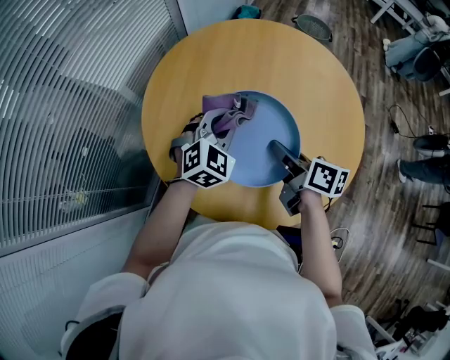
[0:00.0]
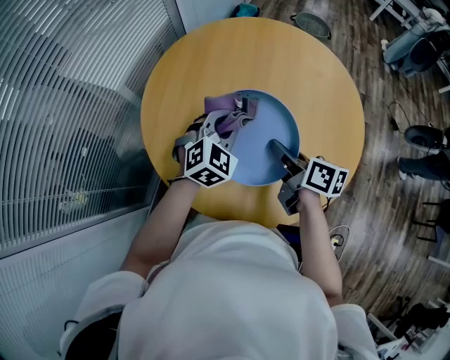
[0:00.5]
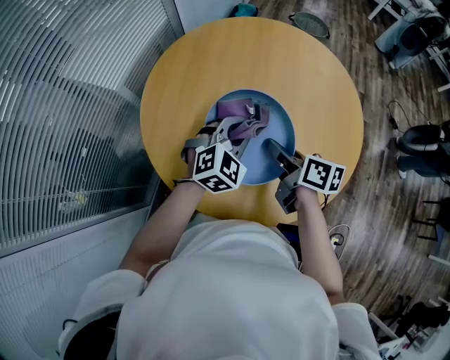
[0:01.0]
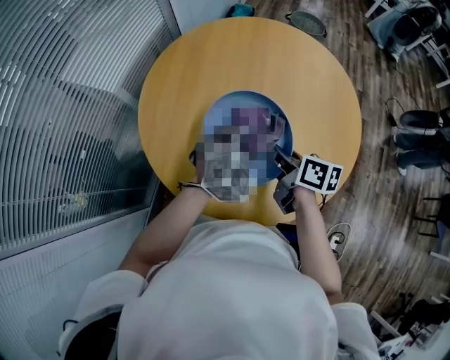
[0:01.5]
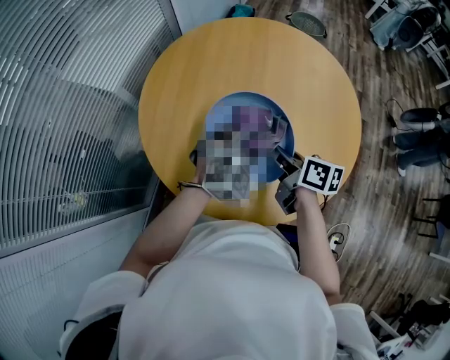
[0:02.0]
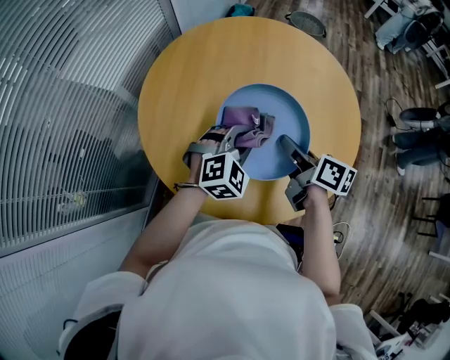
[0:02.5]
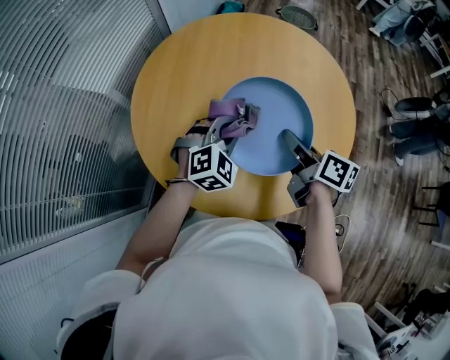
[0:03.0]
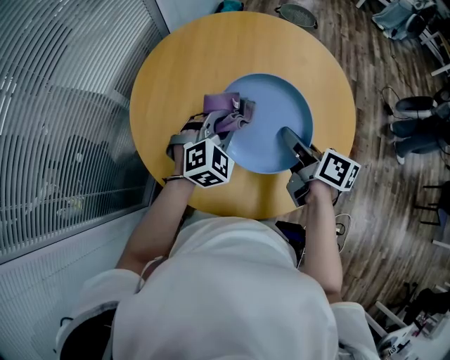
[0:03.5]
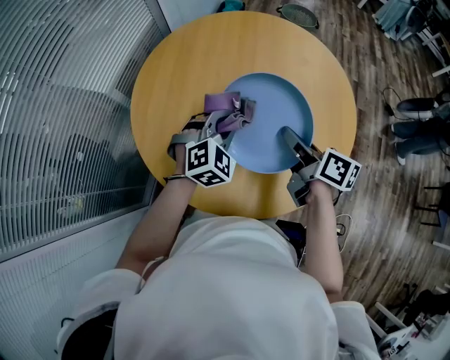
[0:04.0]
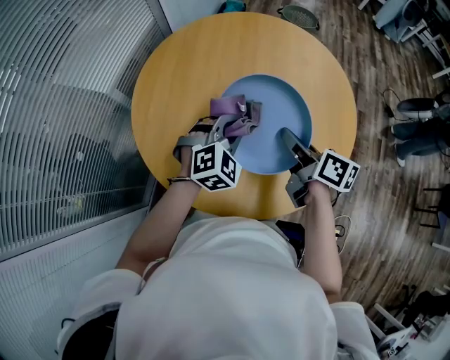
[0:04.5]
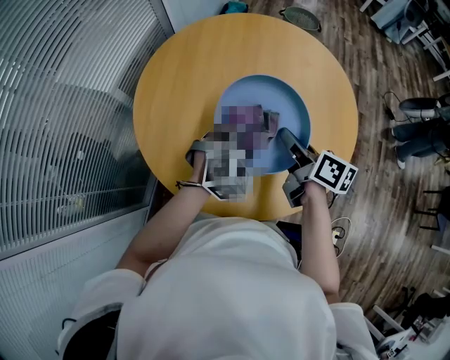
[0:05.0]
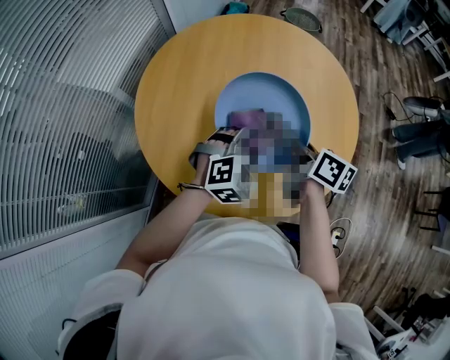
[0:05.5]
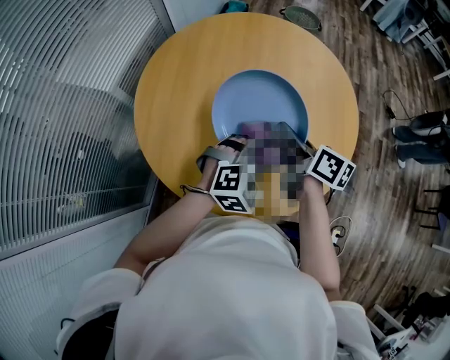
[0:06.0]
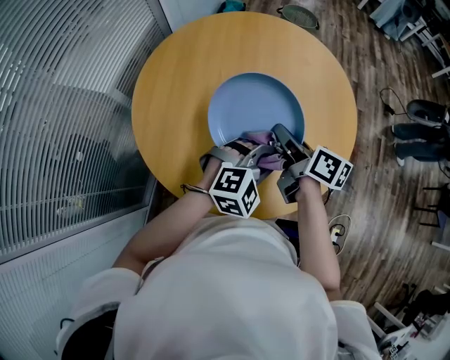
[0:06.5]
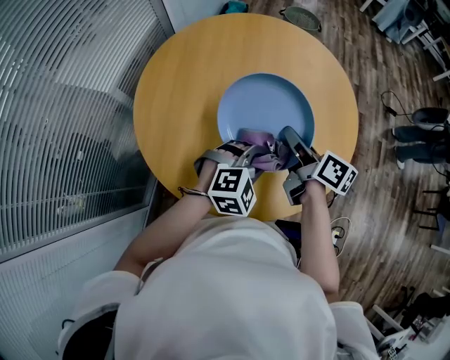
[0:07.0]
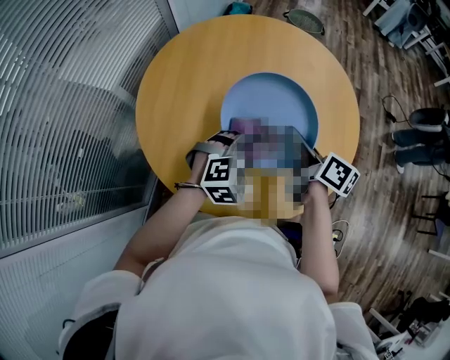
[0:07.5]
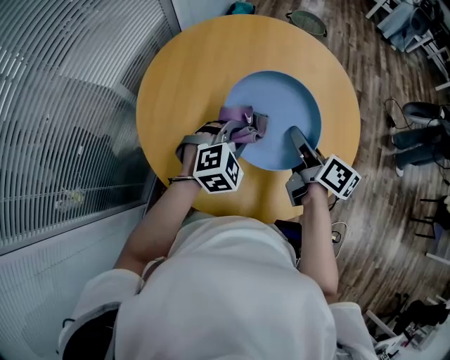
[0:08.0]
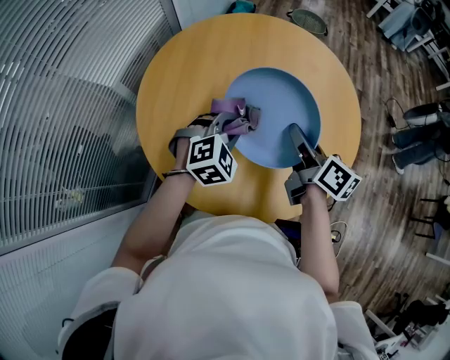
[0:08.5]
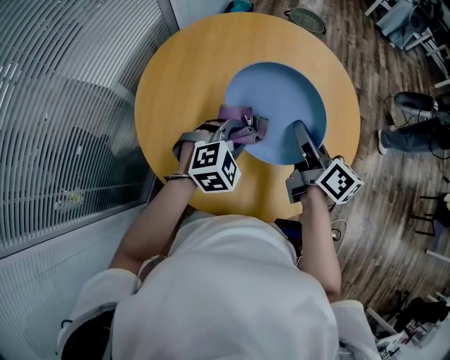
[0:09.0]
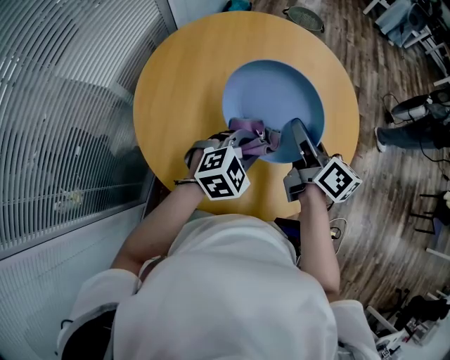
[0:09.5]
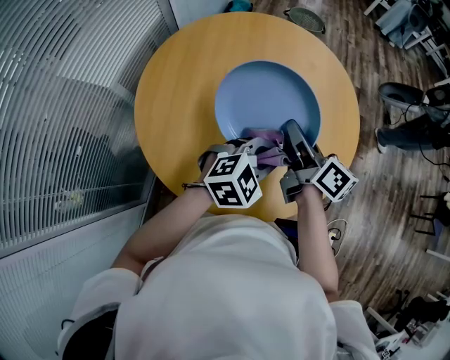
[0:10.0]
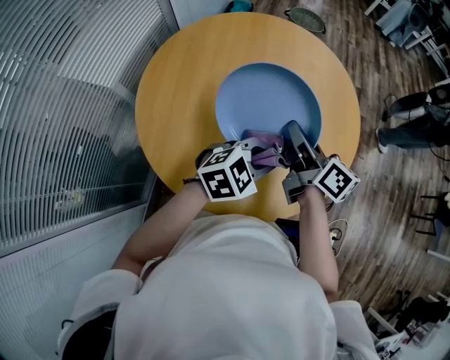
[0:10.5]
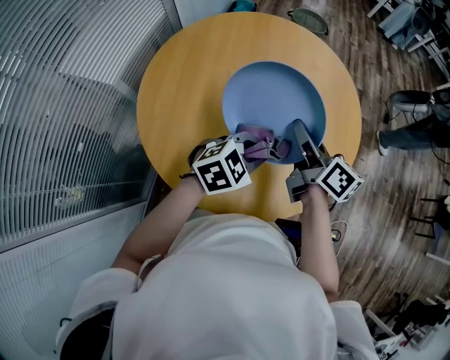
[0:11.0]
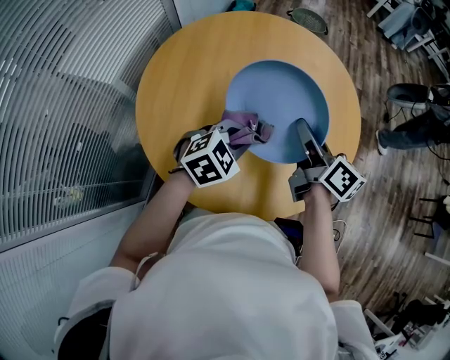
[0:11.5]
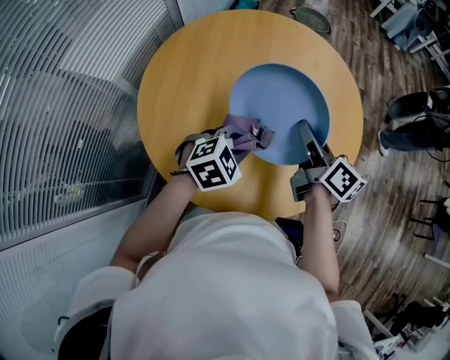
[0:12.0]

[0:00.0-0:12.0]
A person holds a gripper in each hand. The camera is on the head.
0:00.0 to 0:02.0: The left gripper moves to the right and backward, approximately 10 cm.
0:02.0 to 0:04.0: The right gripper shifts approximately 5 cm to the right. The left gripper ends up approximately 5 cm from where it was.
0:04.0 to 0:06.0: The left gripper goes roughly 10 cm to the right and backward.
0:06.0 to 0:08.0: The left gripper travels to the left by roughly 10 cm.
0:08.0 to 0:10.0: The left gripper travels to the right and backward by about 10 cm, and swivels some 20 degrees.
0:10.0 to 0:12.0: The left gripper moves to the left and downward, some 10 cm.

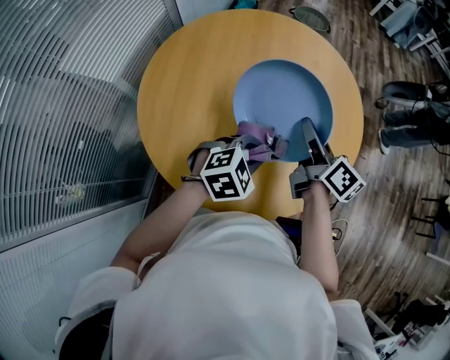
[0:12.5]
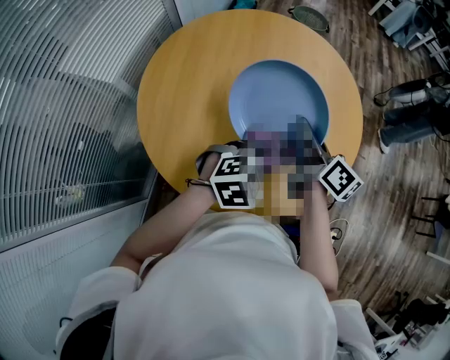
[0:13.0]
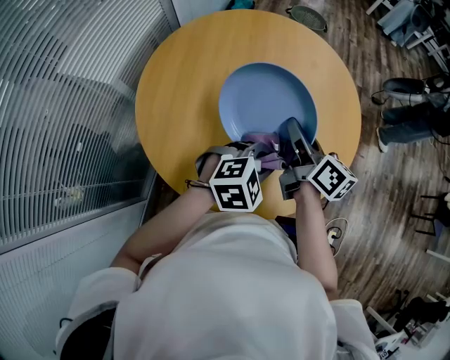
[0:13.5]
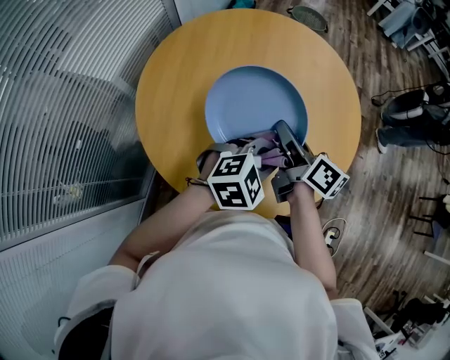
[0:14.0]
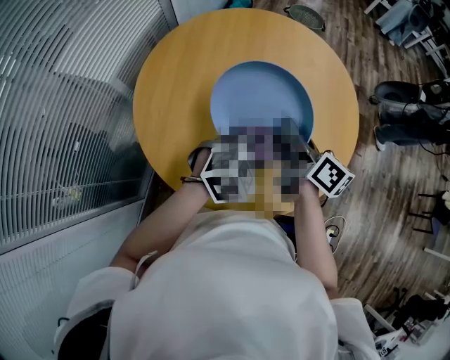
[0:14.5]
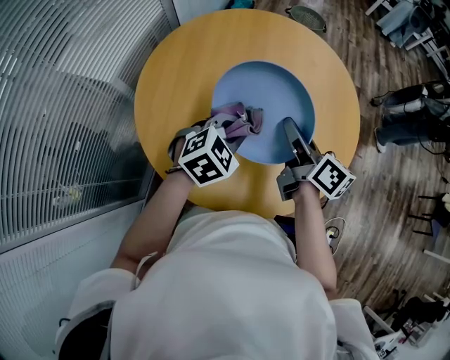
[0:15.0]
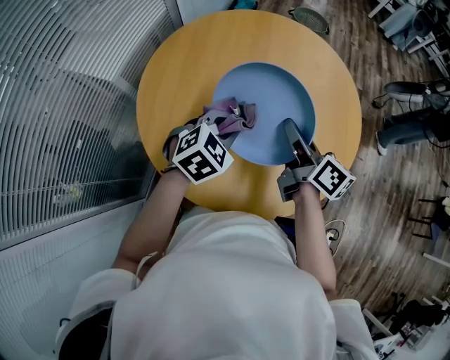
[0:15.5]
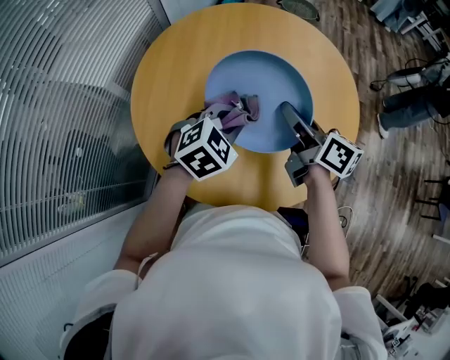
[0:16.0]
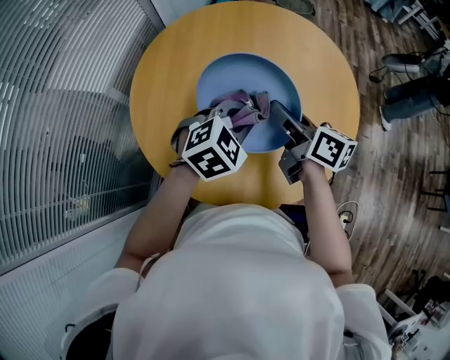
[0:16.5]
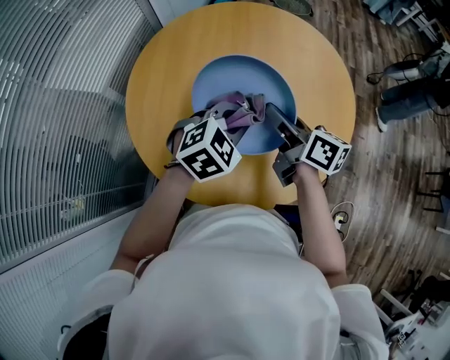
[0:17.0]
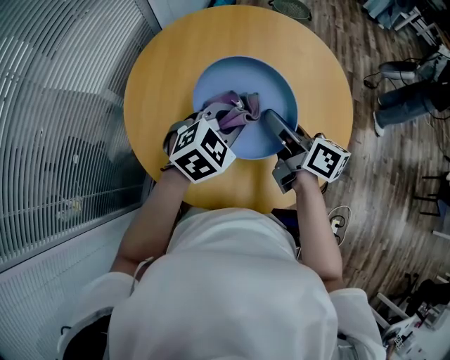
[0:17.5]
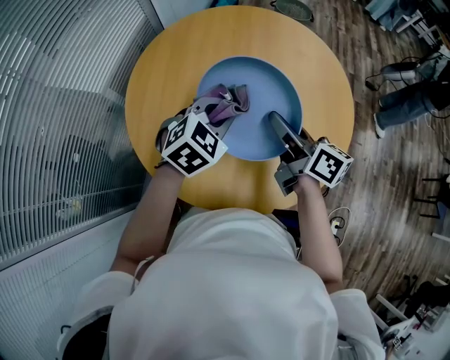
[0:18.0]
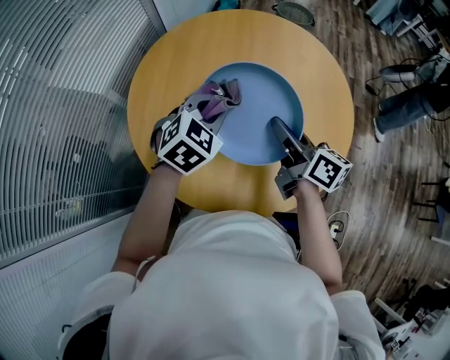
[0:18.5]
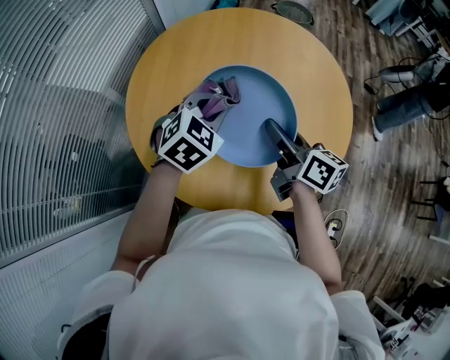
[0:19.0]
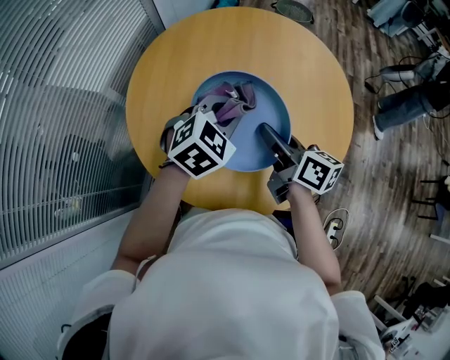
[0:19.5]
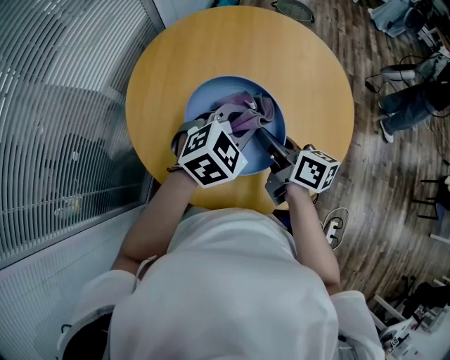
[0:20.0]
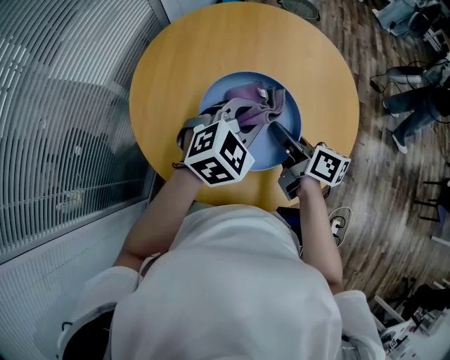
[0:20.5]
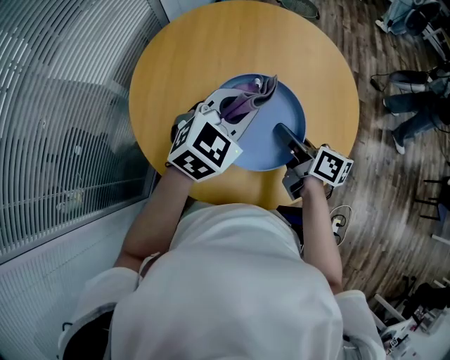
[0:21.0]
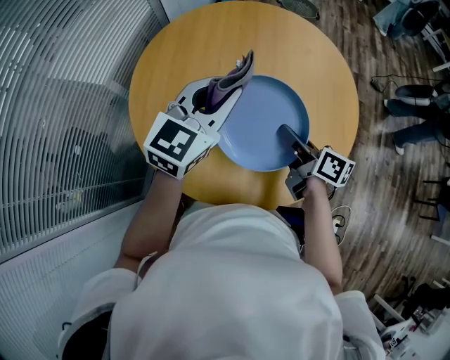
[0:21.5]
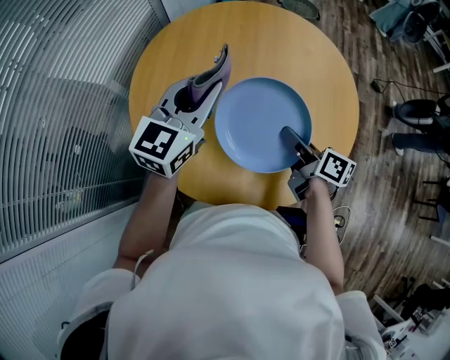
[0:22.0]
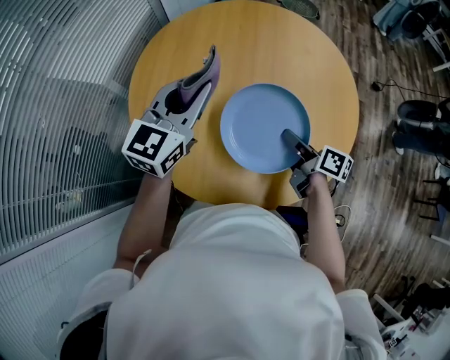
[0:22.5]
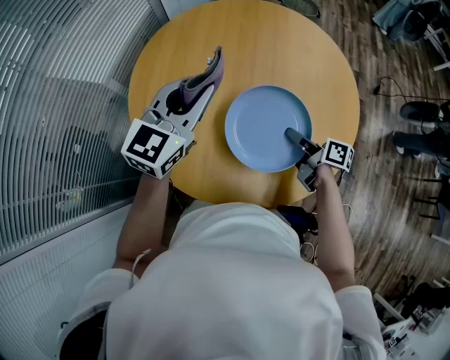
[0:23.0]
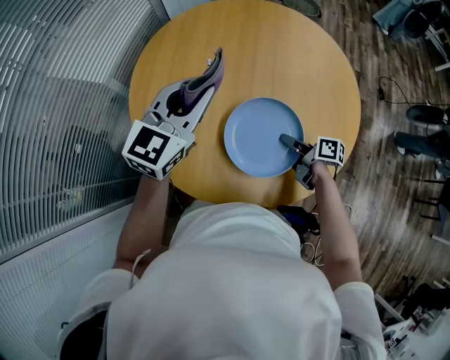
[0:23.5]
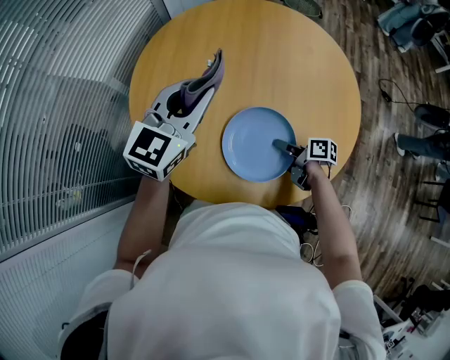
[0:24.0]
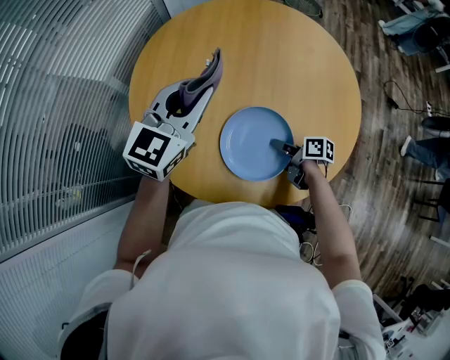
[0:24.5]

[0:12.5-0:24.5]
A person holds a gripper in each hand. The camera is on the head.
0:16.5 to 0:18.5: The left gripper travels to the left by about 5 cm.
0:18.5 to 0:20.5: The left gripper moves to the right, approximately 5 cm. Meanwhile the right gripper shifts by roughly 5 cm.
0:20.5 to 0:22.5: The right gripper moves downward and to the right, approximately 10 cm, while the left gripper goes approximately 15 cm to the left and upward, and swivels roughly 40 degrees.
0:22.5 to 0:24.5: The right gripper heads downward, covering approximately 10 cm, and swivels approximately 20 degrees.

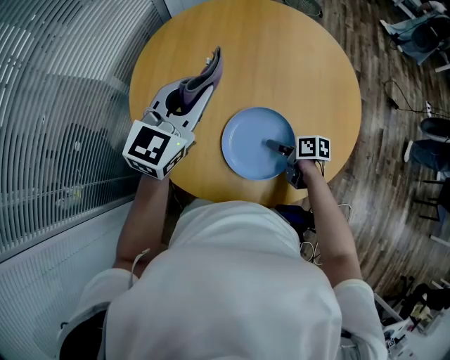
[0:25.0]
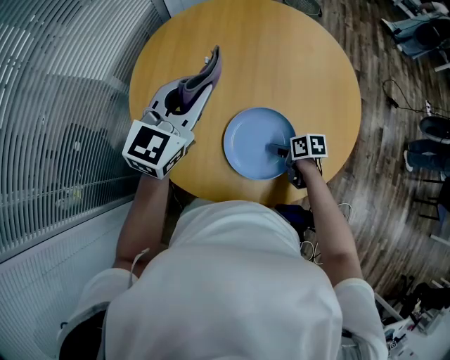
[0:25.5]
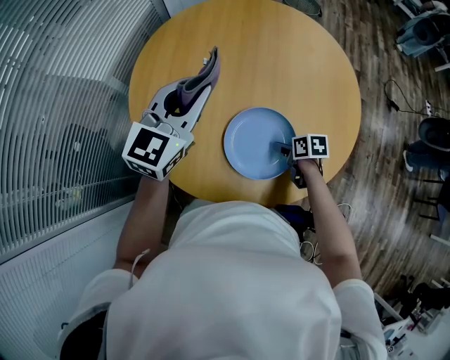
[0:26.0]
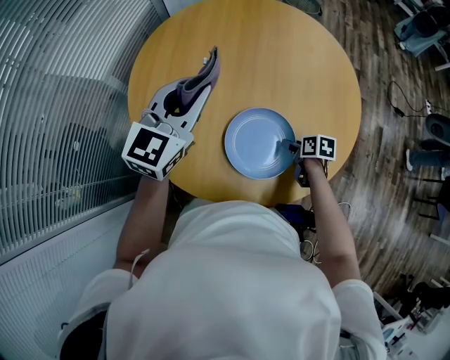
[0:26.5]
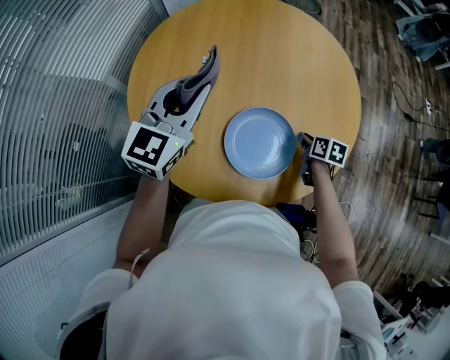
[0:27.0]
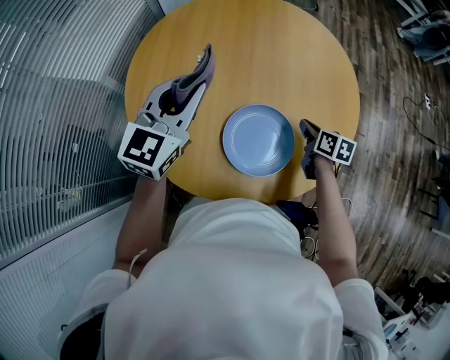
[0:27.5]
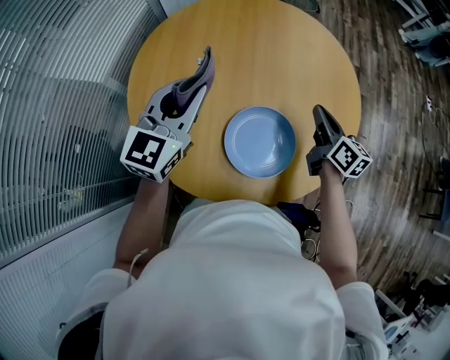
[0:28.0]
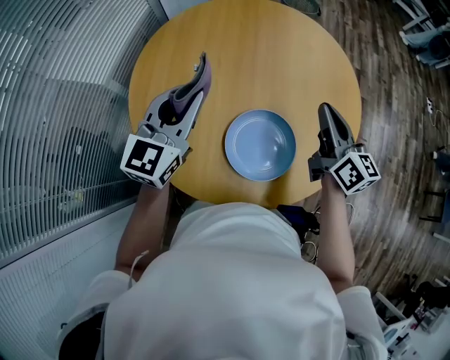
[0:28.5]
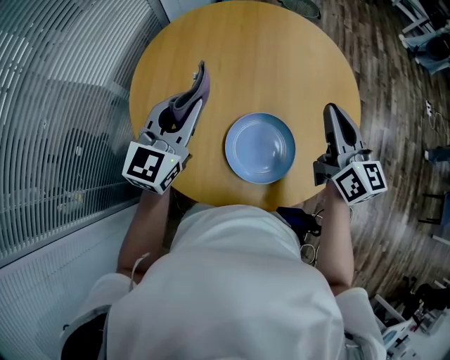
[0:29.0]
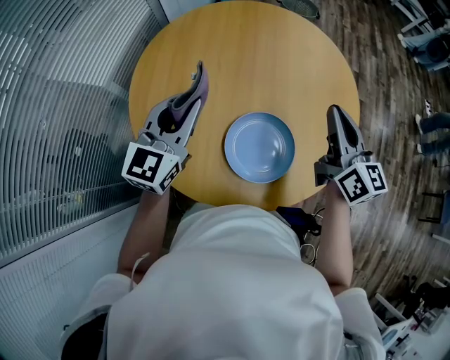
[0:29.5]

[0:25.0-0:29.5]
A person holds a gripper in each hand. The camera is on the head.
0:25.0 to 0:27.0: The right gripper is displaced to the right by about 10 cm, changes its angle by approximately 30 degrees, and closes its fingers.
0:27.0 to 0:29.5: The right gripper moves upward, about 30 cm, and tilts its fingers about 50 degrees upward.
